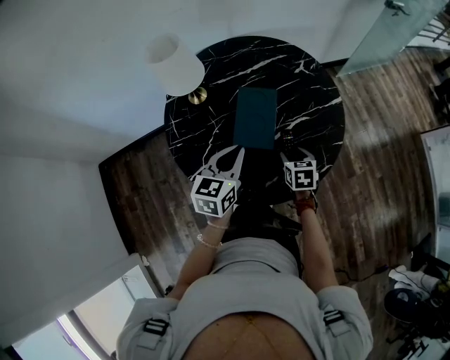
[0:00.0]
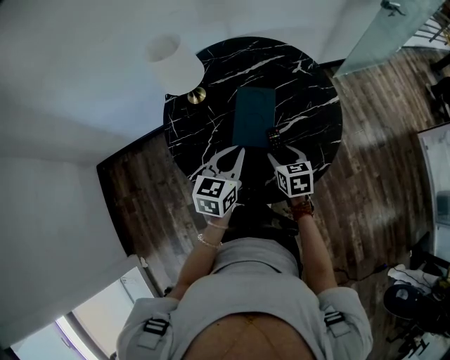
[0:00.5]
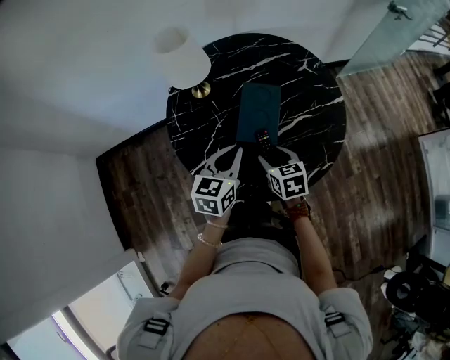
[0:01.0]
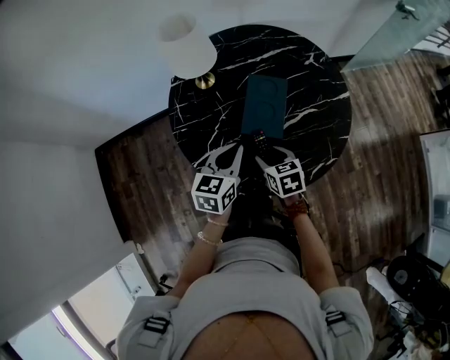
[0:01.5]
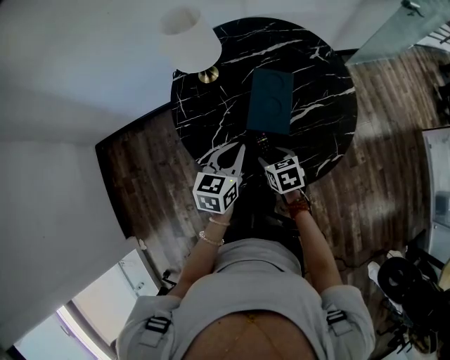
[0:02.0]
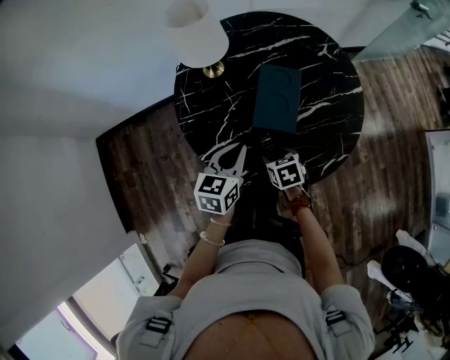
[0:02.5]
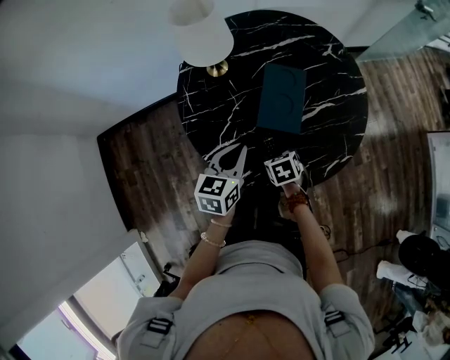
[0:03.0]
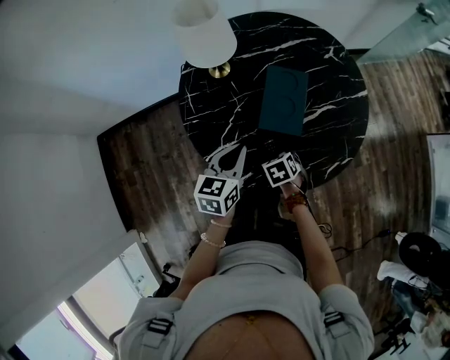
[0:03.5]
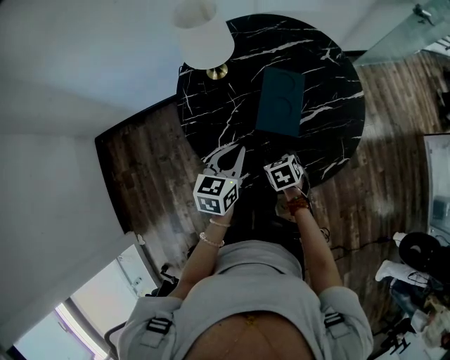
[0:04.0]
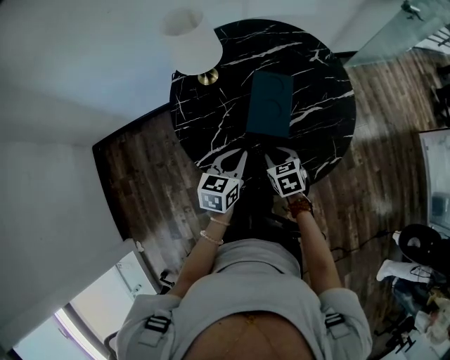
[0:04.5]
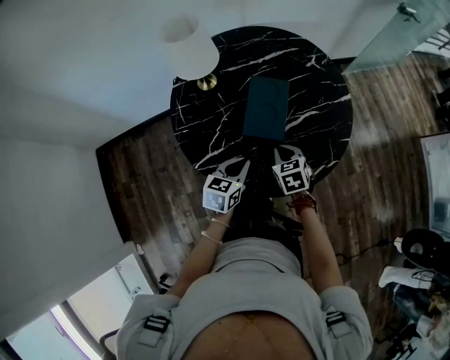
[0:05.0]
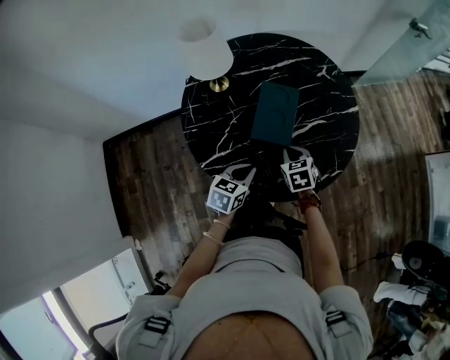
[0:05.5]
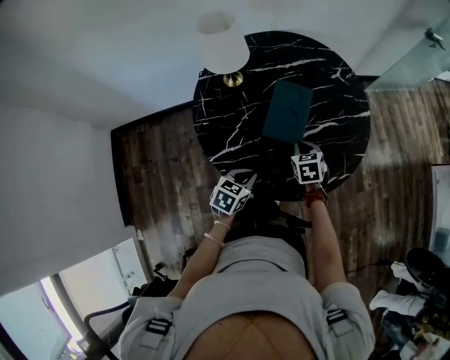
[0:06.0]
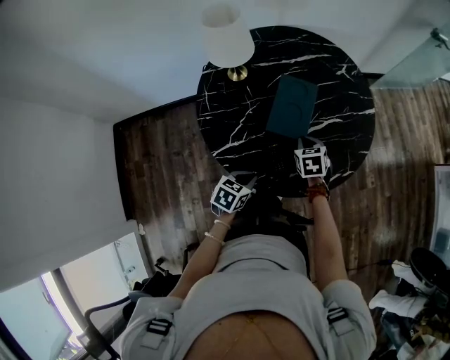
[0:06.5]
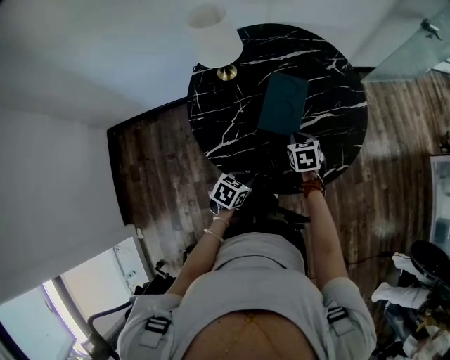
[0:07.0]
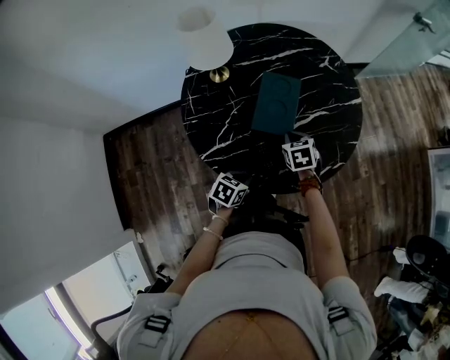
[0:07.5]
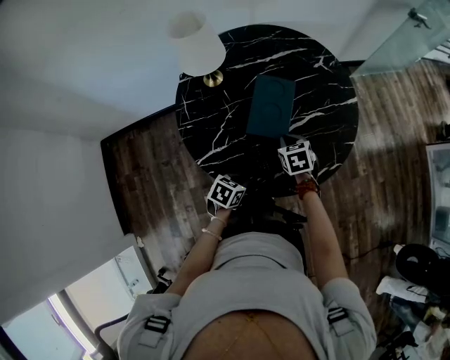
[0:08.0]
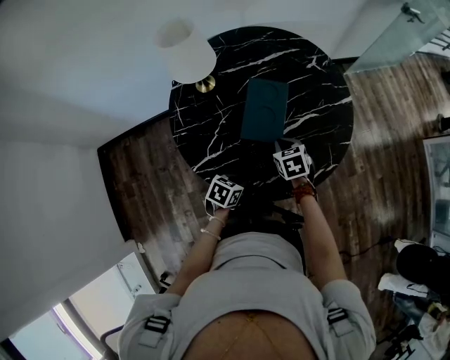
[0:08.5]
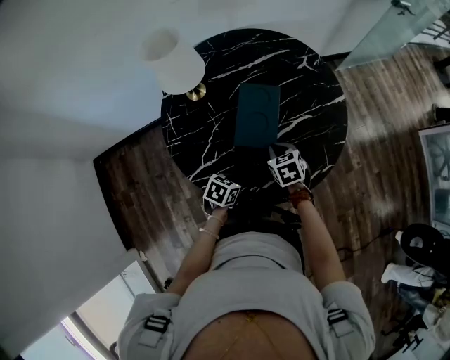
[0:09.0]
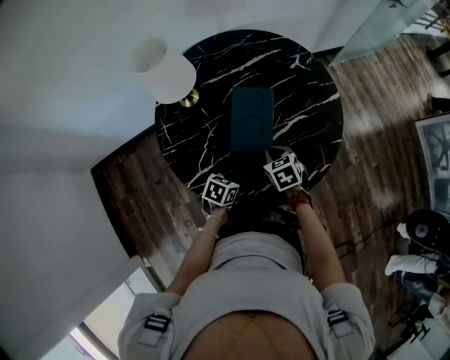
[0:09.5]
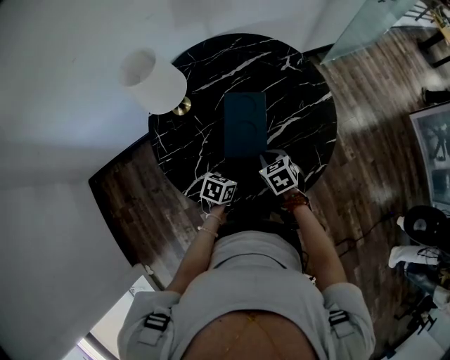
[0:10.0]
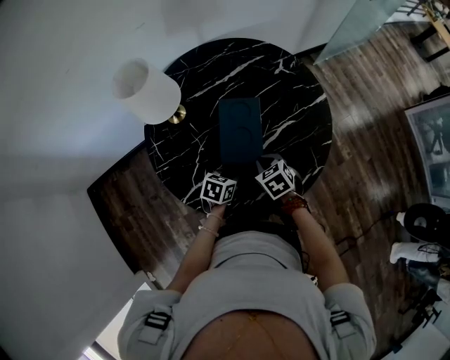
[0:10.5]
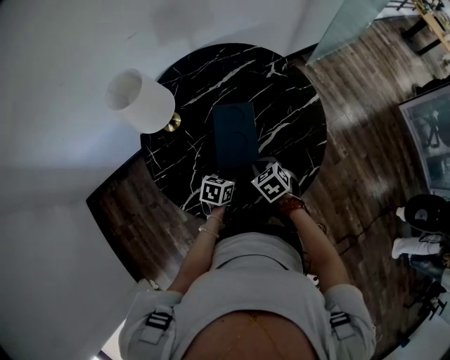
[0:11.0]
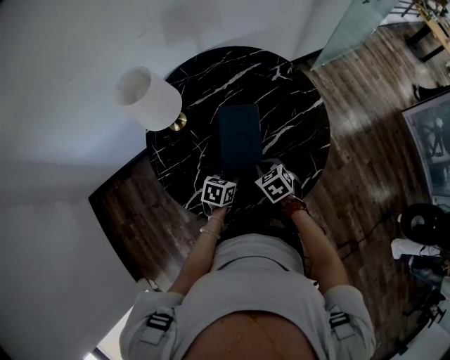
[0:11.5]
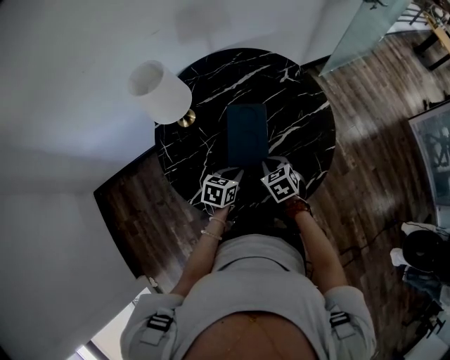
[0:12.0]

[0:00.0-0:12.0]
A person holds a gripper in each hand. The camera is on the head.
0:00.0 to 0:02.0: The right gripper travels to the left and backward by approximately 15 cm. The left gripper travels to the left by about 5 cm.
0:02.0 to 0:04.0: The grippers move only a little.
0:04.0 to 0:06.0: The right gripper travels forward and to the right by roughly 10 cm, and closes up; the left gripper moves downward, backward and to the right, approximately 10 cm, and rotates approximately 20 degrees.
0:06.0 to 0:08.0: The left gripper travels downward by approximately 5 cm.
0:08.0 to 0:10.0: The left gripper is displaced forward by about 10 cm.
0:10.0 to 0:12.0: The left gripper heads upward, covering roughly 5 cm.

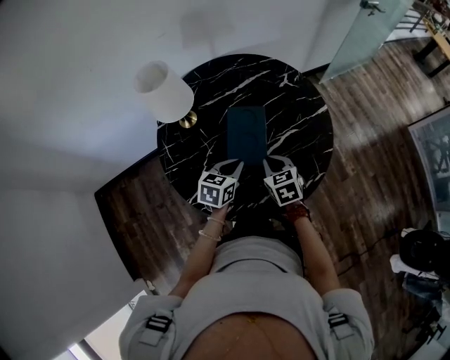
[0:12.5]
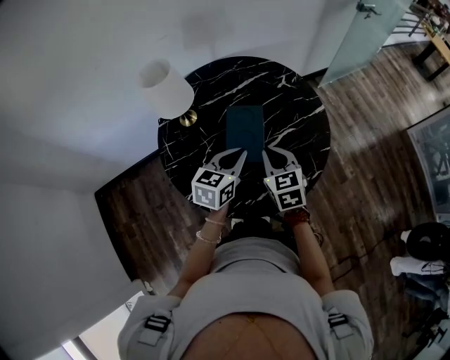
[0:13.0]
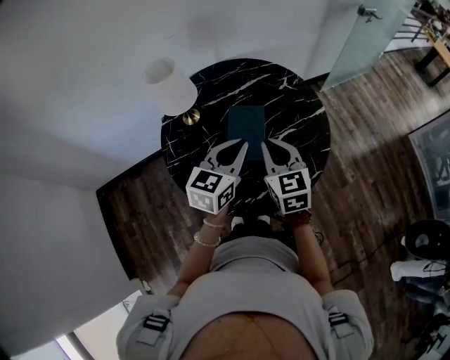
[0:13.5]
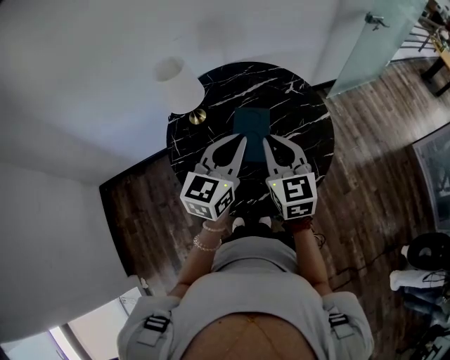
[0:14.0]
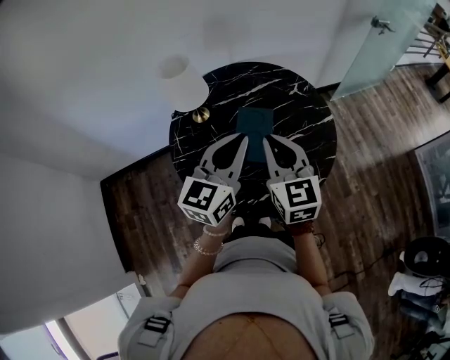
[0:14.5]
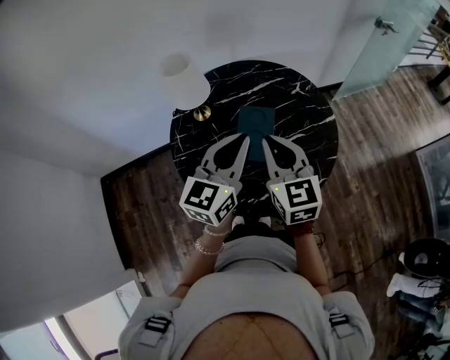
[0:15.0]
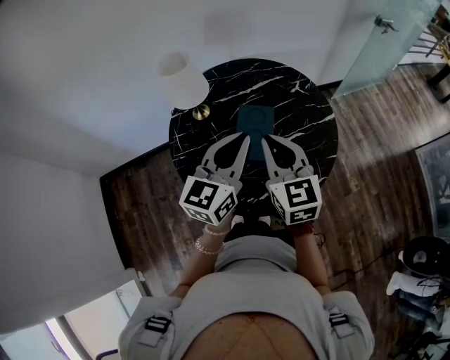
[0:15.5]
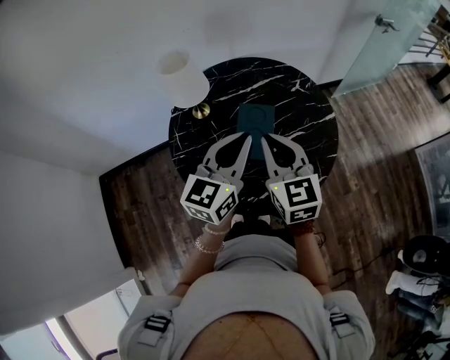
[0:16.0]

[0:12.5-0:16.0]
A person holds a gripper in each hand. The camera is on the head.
0:12.5 to 0:14.5: The two grippers go about 25 cm upward. The left gripper tilts its fingers about 30 degrees upward, while the right gripper points its fingers some 30 degrees further upward.
0:14.5 to 0:16.0: The two grippers keep their place.

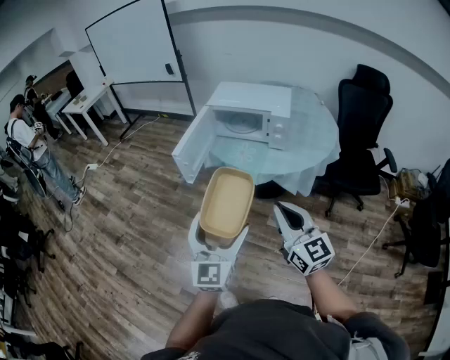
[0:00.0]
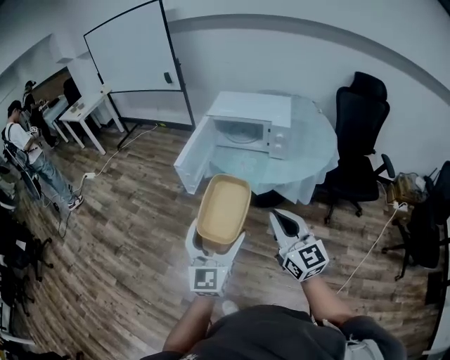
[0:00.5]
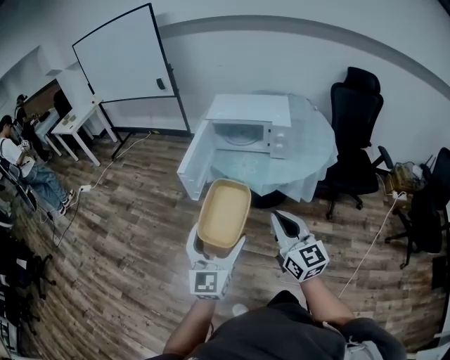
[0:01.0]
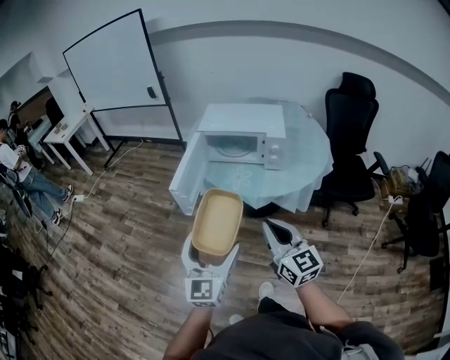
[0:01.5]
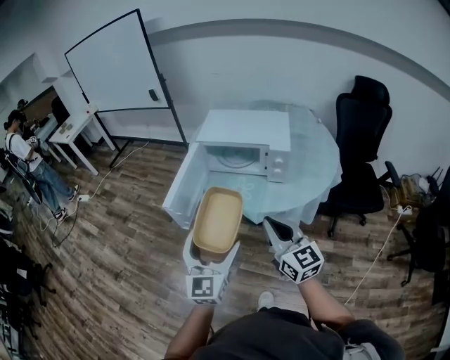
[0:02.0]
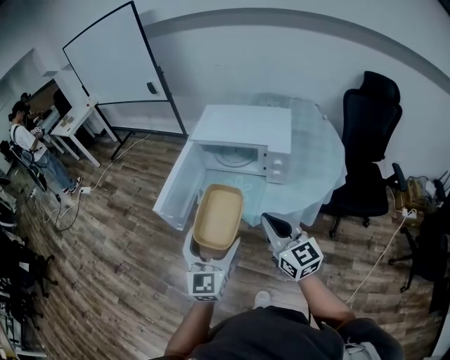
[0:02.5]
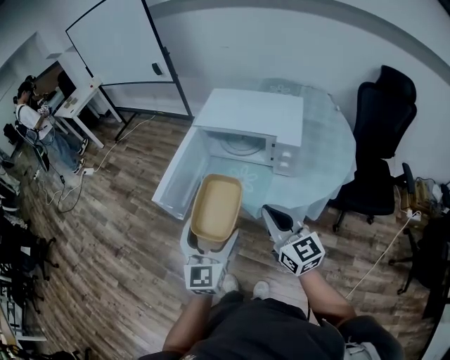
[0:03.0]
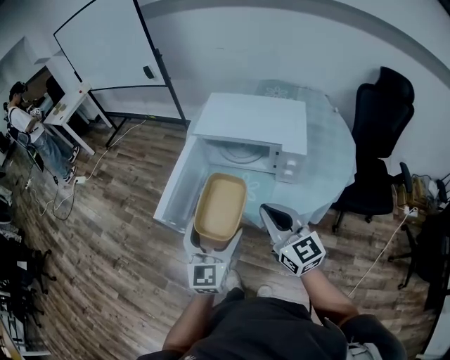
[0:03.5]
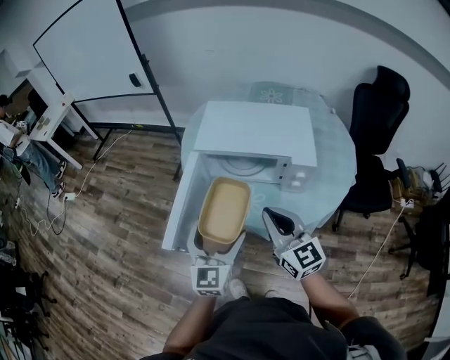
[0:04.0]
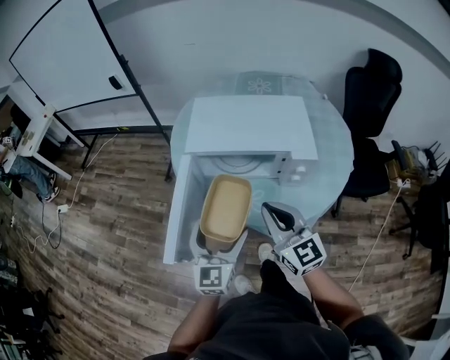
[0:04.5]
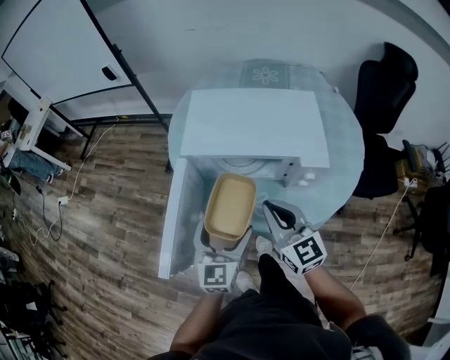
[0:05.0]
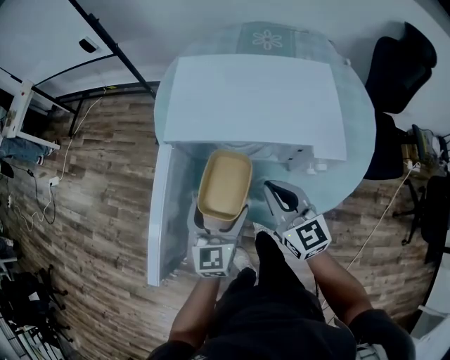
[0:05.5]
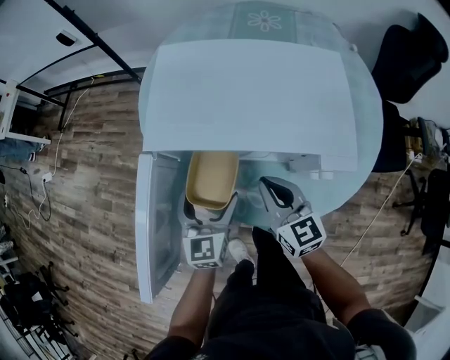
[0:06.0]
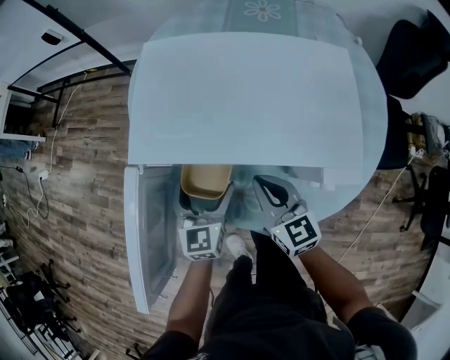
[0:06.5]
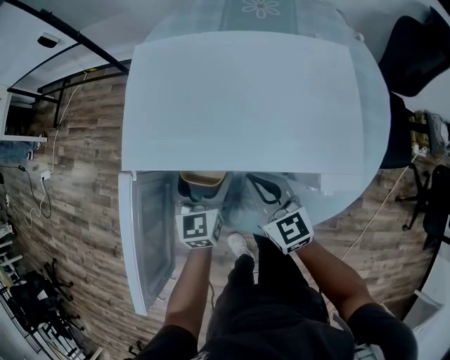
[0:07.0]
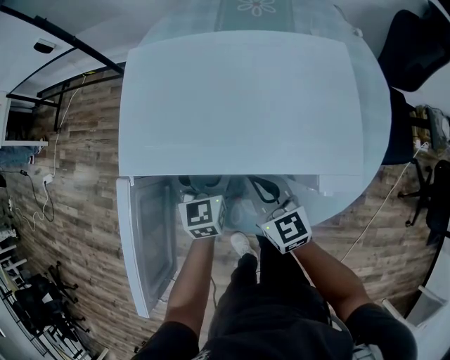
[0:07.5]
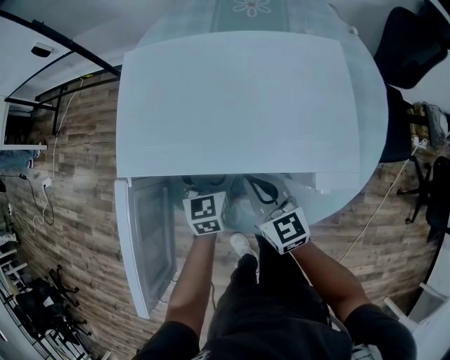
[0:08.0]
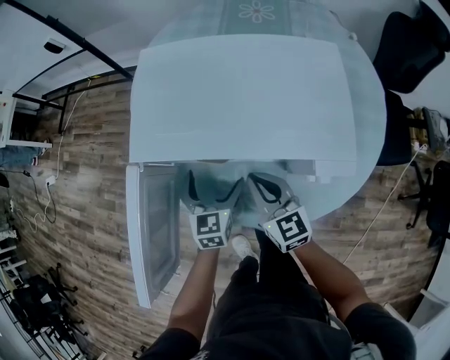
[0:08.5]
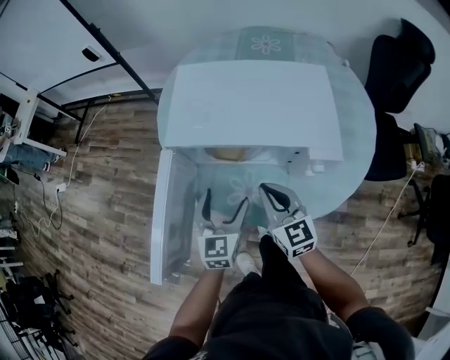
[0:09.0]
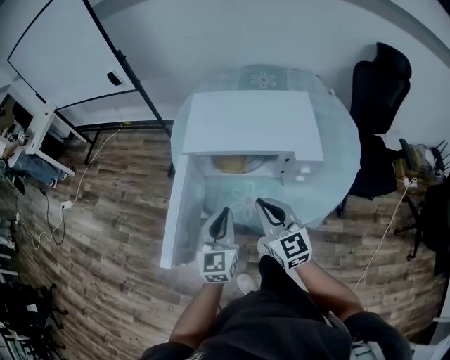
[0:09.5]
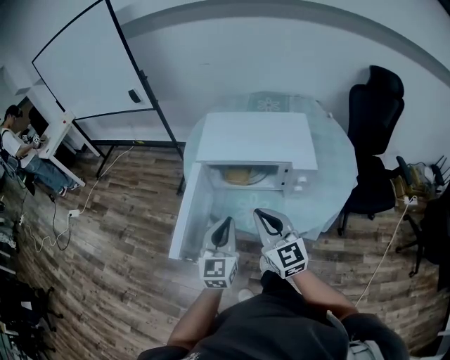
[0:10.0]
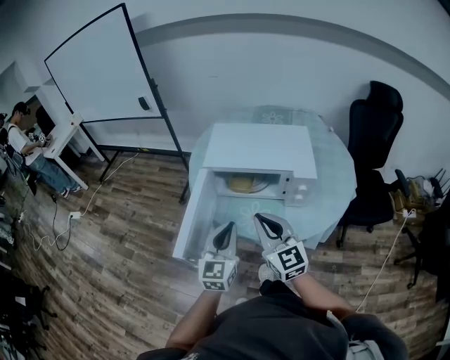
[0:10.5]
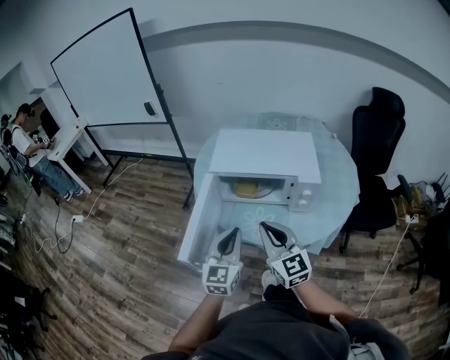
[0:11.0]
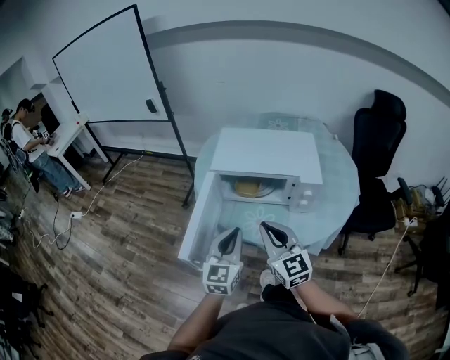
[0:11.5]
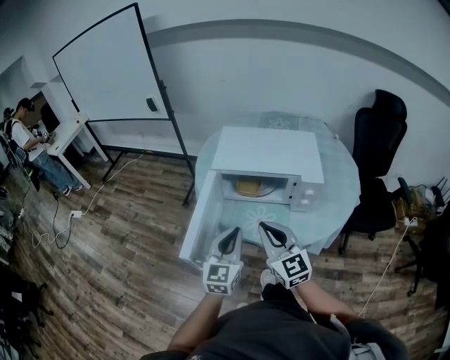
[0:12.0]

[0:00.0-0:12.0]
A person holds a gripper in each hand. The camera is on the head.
0:00.0 to 0:02.0: The two grippers go roughly 15 cm forward.
0:02.0 to 0:04.0: Both grippers move forward, about 20 cm.
0:04.0 to 0:06.0: The left gripper heads forward and downward, covering roughly 25 cm. The right gripper is displaced downward and forward by approximately 25 cm.
0:06.0 to 0:08.0: The right gripper ends up some 5 cm from where it was. Meanwhile the left gripper is displaced forward, downward and to the right by roughly 15 cm.
0:08.0 to 0:10.0: The left gripper is displaced backward and upward by roughly 35 cm, changes its angle by about 20 degrees, and closes up. Meanwhile the right gripper moves upward and backward, about 30 cm, and changes its angle by some 20 degrees.
0:10.0 to 0:12.0: The grippers move only a little.
